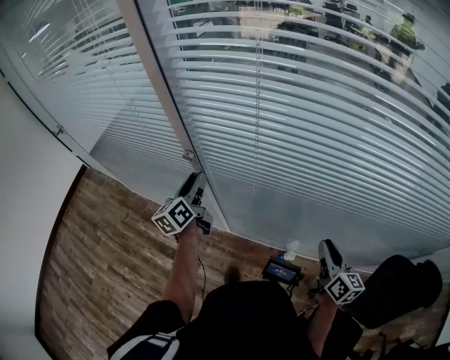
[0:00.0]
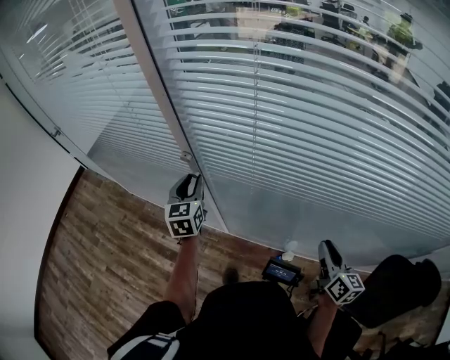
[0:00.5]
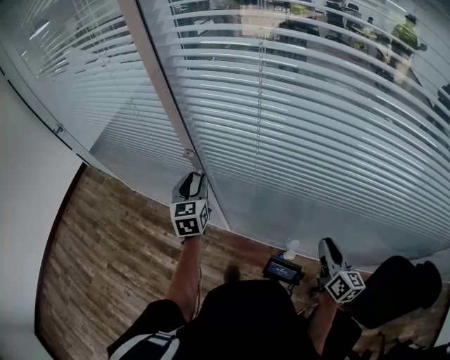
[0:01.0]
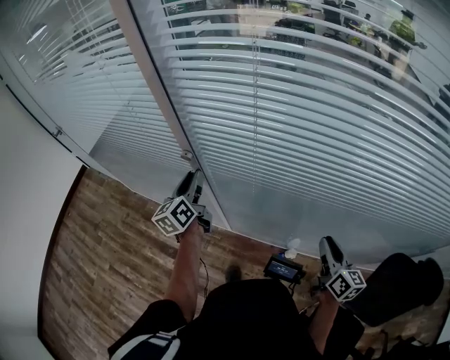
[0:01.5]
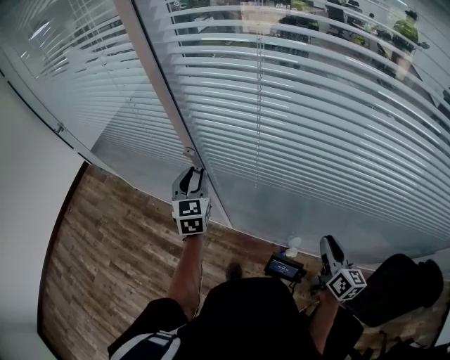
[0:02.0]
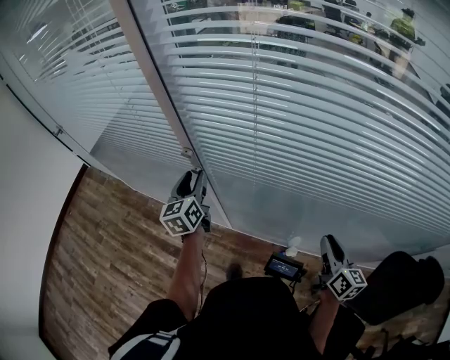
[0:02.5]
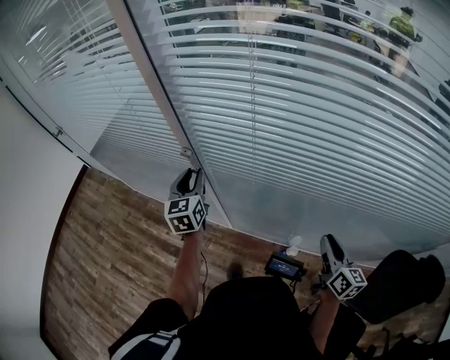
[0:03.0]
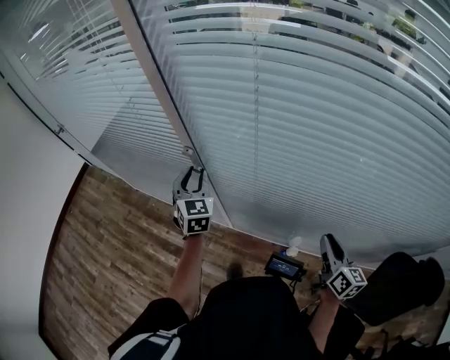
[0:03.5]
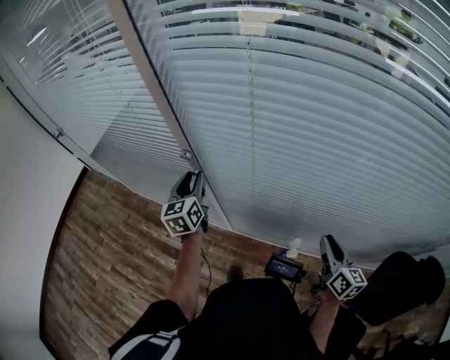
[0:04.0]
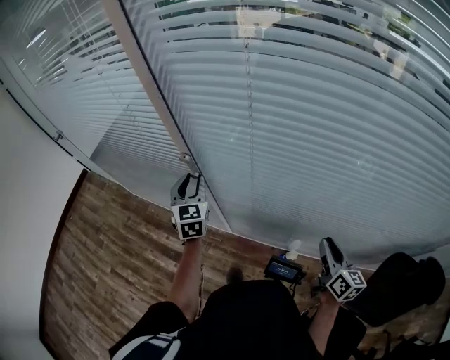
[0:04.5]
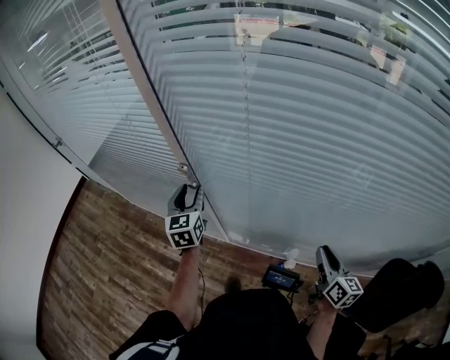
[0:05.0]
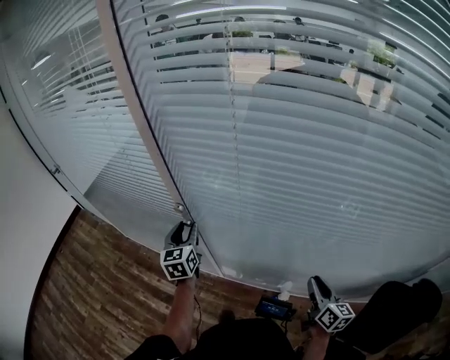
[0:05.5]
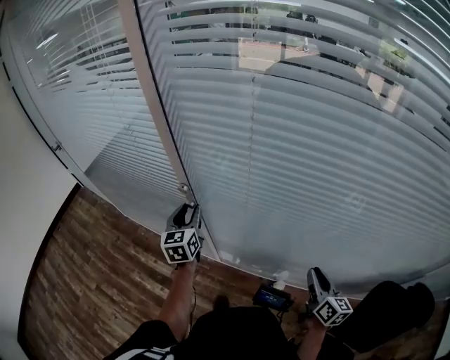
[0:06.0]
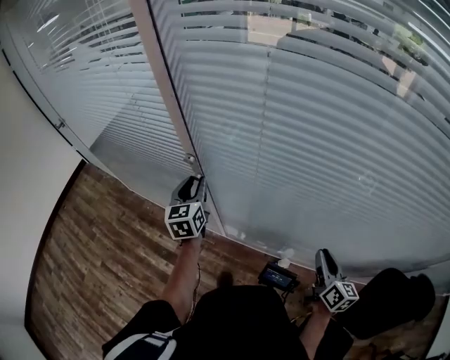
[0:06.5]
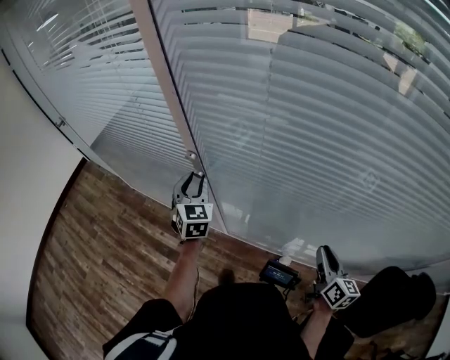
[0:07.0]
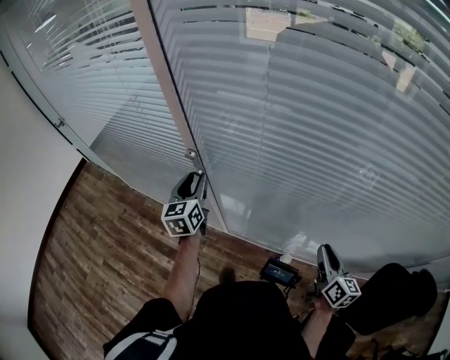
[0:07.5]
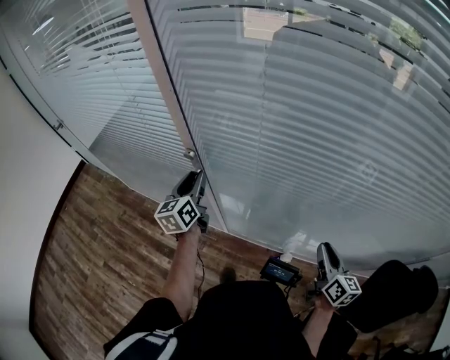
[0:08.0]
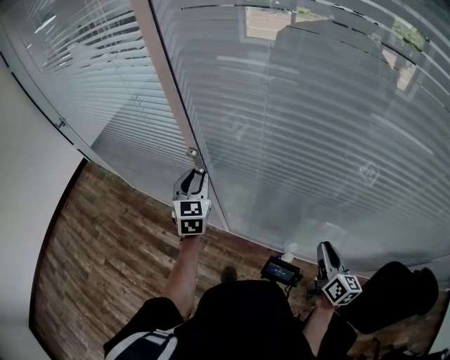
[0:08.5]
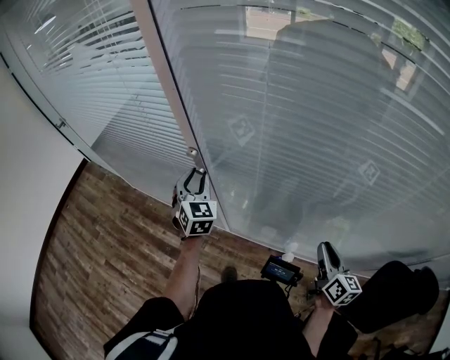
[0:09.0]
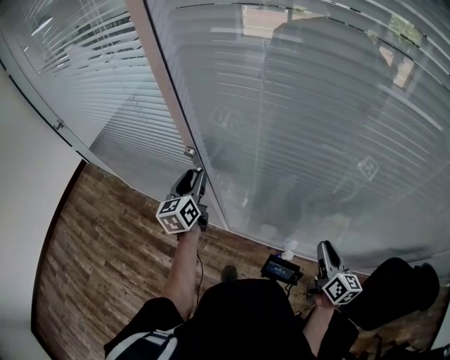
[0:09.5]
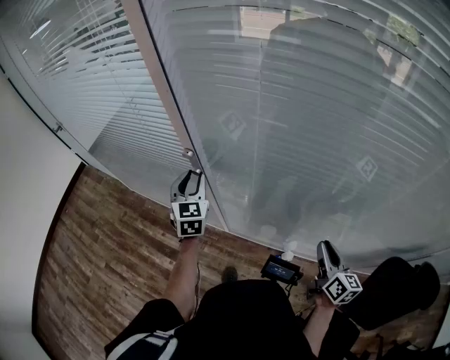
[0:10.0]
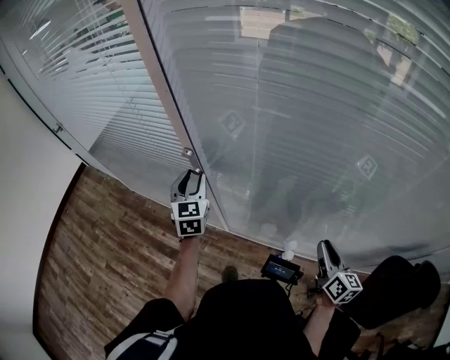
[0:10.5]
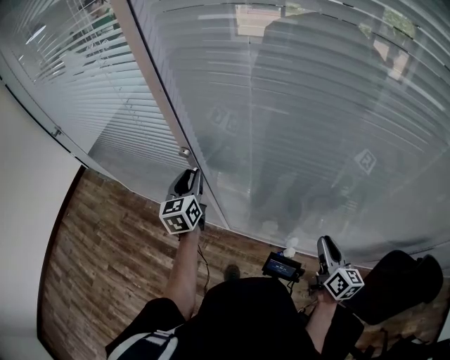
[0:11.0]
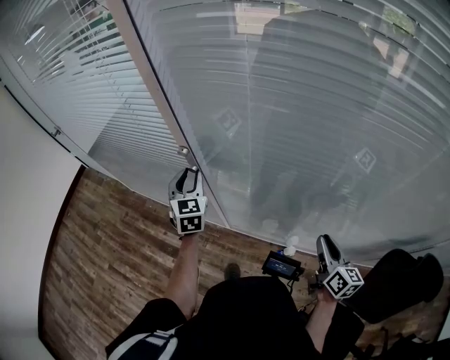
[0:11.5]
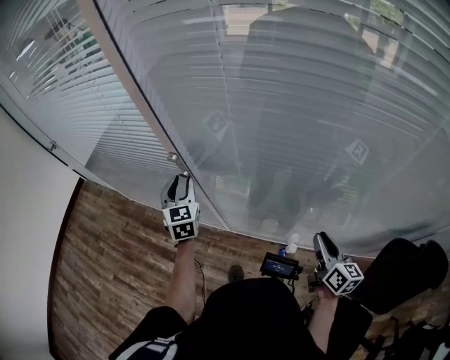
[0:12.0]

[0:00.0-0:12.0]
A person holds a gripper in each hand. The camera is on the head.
0:00.0 to 0:02.0: The left gripper rotates around the line of its fingers by about 40 degrees, clockwise from behind.
0:02.0 to 0:04.0: The left gripper turns by some 20 degrees.
0:08.0 to 0:10.0: The left gripper swivels some 40 degrees.

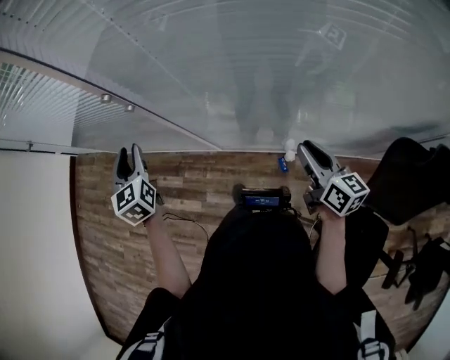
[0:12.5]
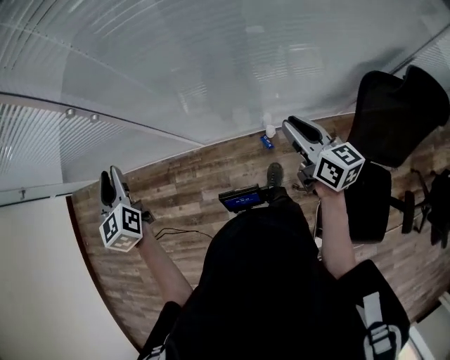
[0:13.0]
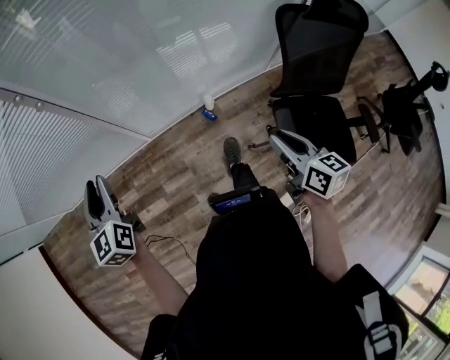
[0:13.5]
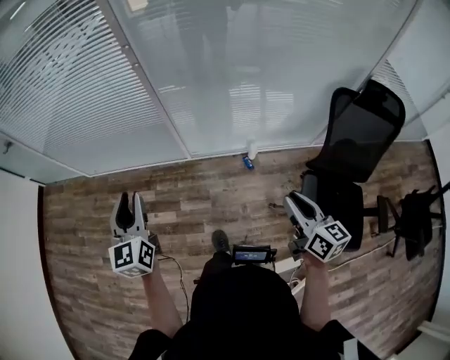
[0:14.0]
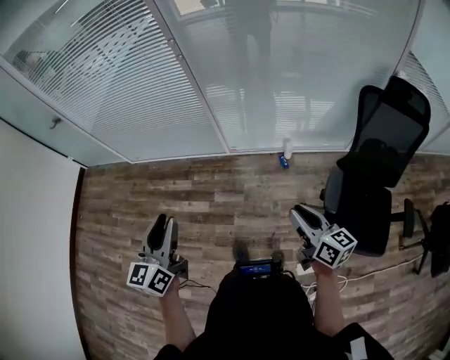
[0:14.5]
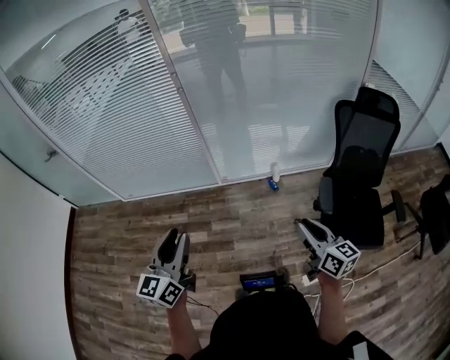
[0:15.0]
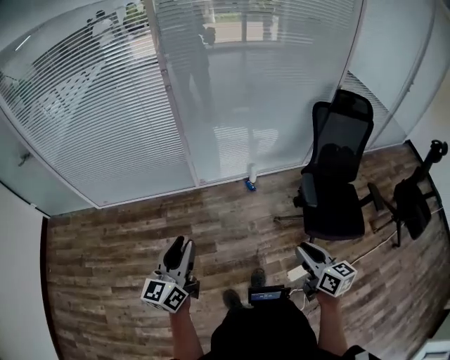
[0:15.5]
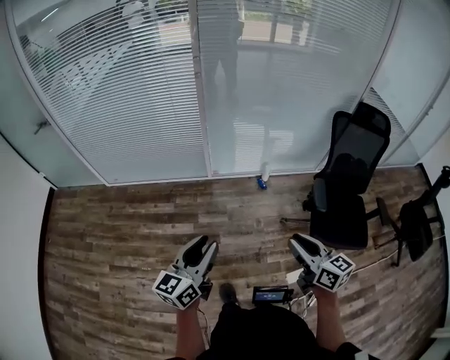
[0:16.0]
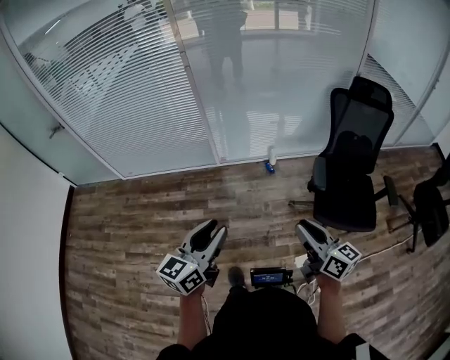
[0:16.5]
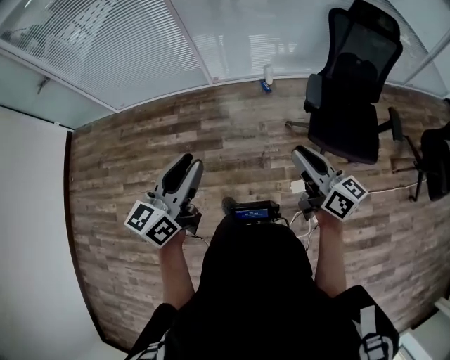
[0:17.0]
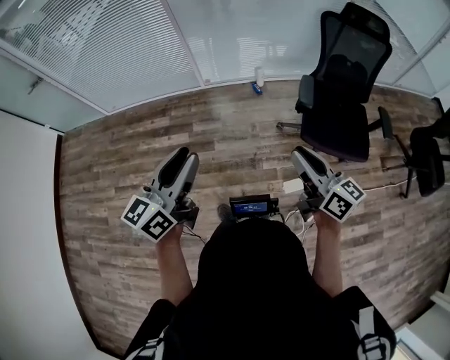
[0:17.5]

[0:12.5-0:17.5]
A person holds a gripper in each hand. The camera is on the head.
0:12.5 to 0:15.0: Both grippers are carried about 50 cm. The left gripper rotates approximately 50 degrees.
0:15.0 to 0:17.5: The right gripper travels backward by approximately 20 cm; the left gripper goes some 20 cm backward and to the right.

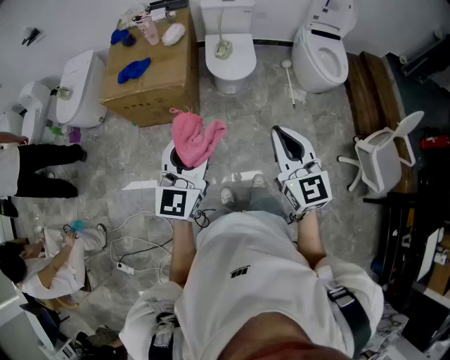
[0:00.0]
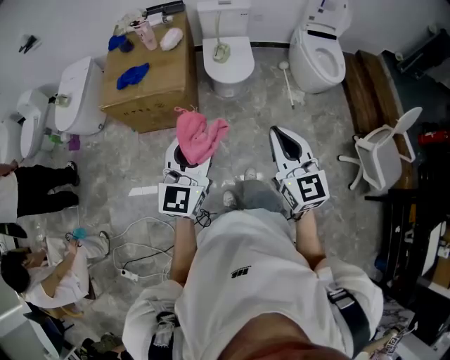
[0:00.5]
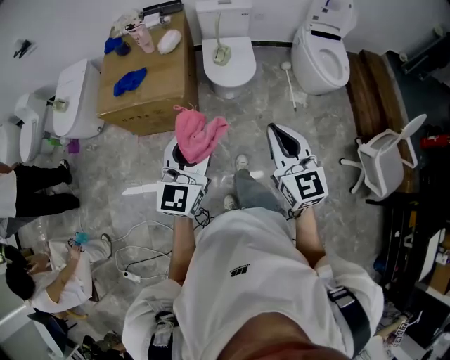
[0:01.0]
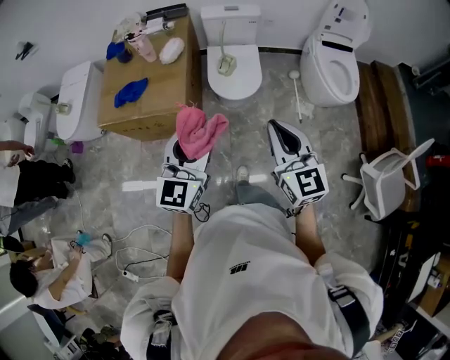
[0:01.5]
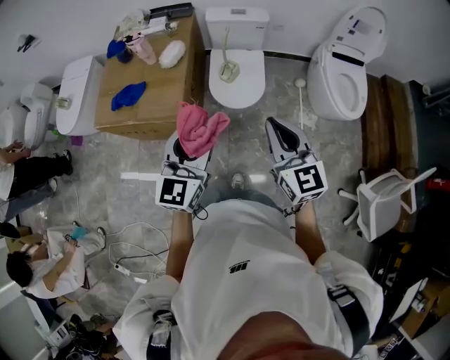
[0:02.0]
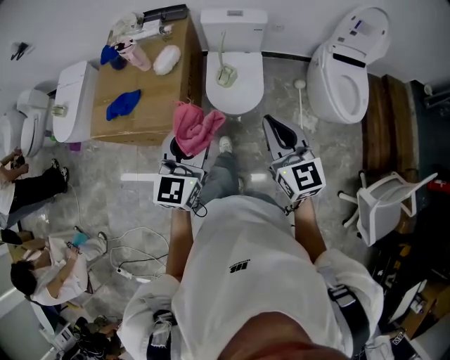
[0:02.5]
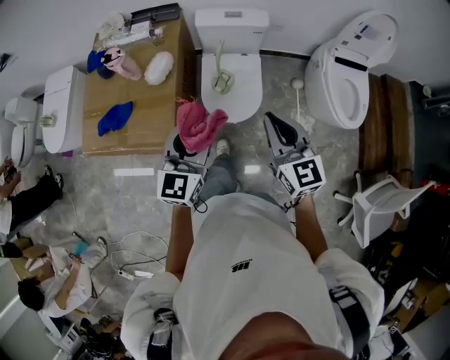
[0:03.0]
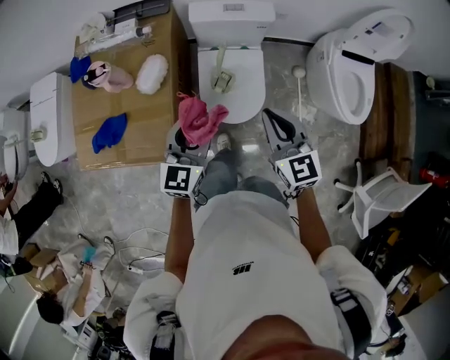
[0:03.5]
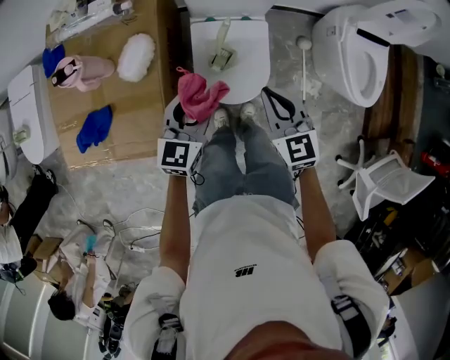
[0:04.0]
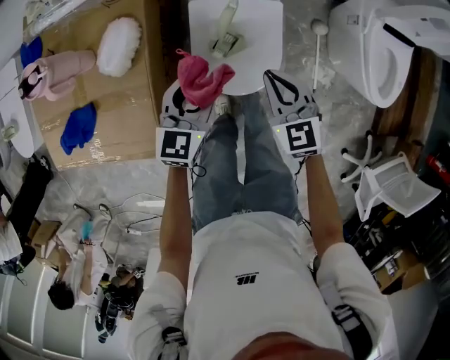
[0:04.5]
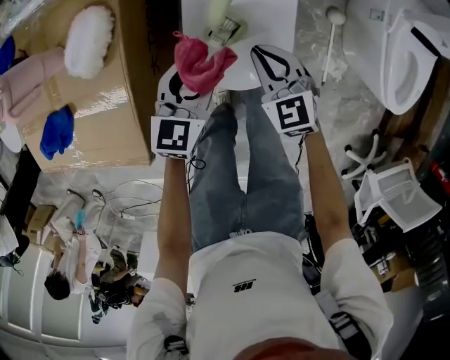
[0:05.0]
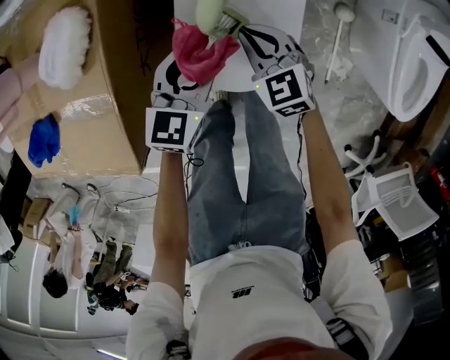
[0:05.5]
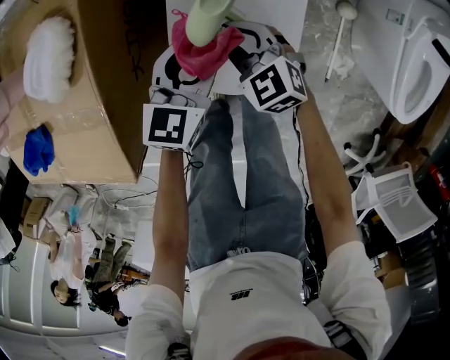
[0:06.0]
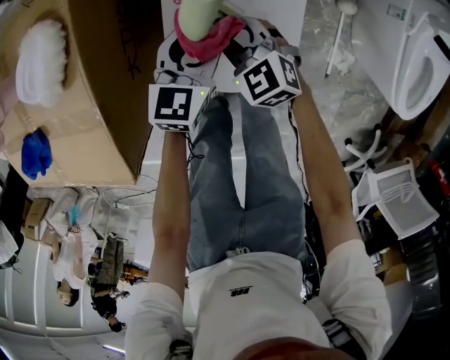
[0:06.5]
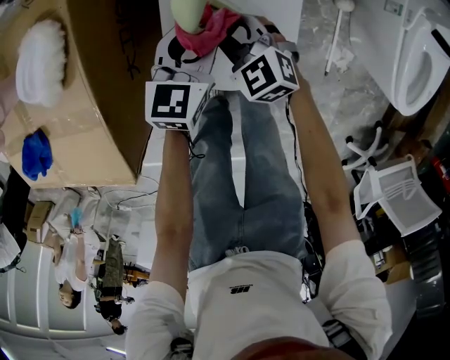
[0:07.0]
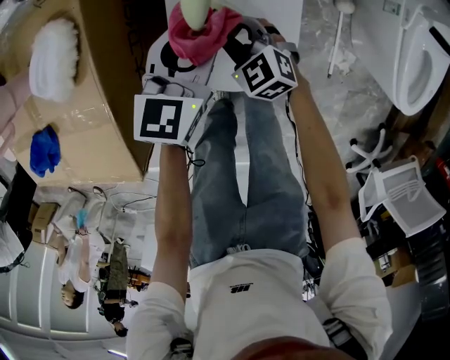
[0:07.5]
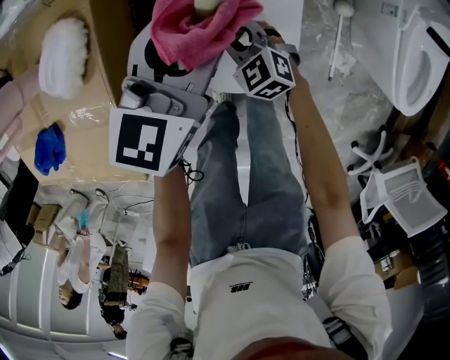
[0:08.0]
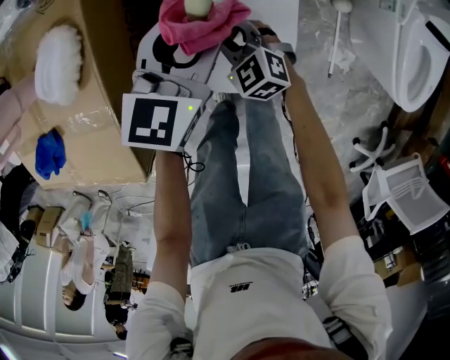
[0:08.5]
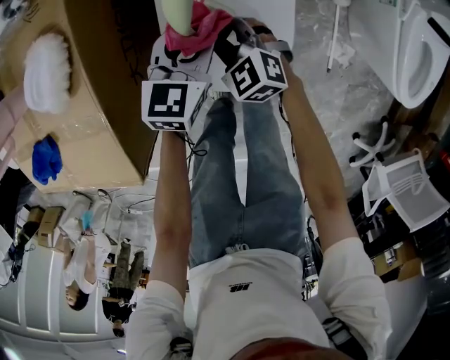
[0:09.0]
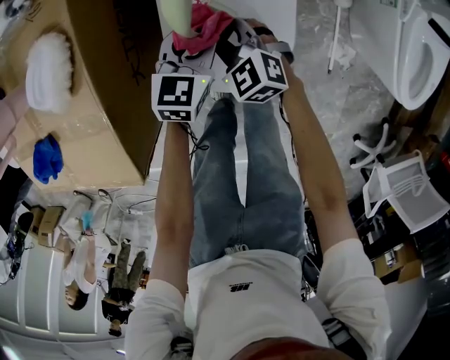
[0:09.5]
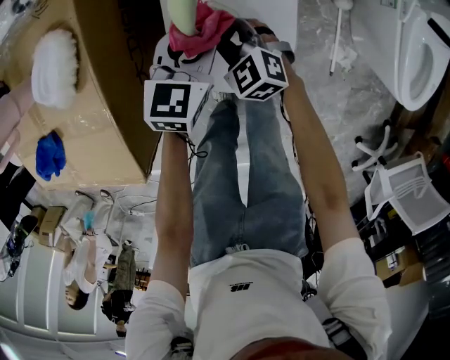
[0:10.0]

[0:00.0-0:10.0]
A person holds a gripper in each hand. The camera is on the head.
0:00.0 to 0:02.0: Both grippers travel together forward, some 30 cm.
0:02.0 to 0:04.0: Both grippers move forward and downward, approximately 50 cm. The right gripper rotates about 20 degrees. The left gripper changes its angle by approximately 20 degrees.
0:04.0 to 0:06.0: The grippers both shift downward by some 30 cm. The right gripper swivels approximately 30 degrees, and opens its fingers.
0:06.0 to 0:08.0: The left gripper shifts approximately 15 cm upward.
0:08.0 to 0:10.0: The left gripper moves downward, some 15 cm.
